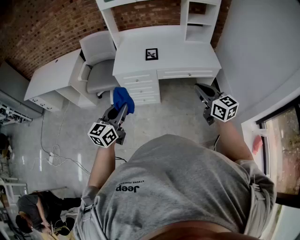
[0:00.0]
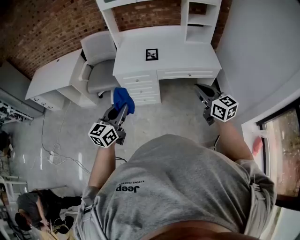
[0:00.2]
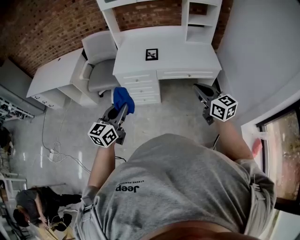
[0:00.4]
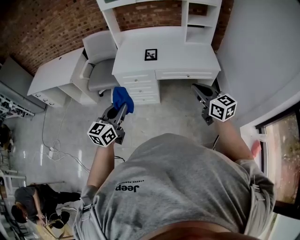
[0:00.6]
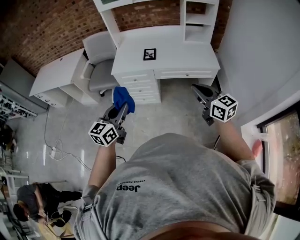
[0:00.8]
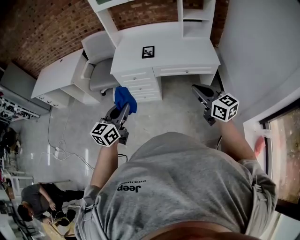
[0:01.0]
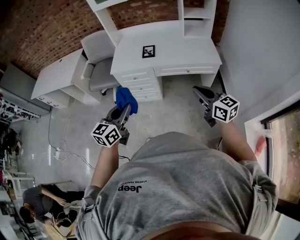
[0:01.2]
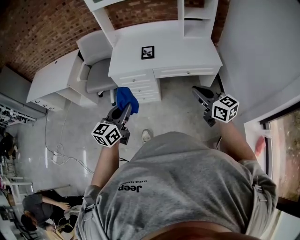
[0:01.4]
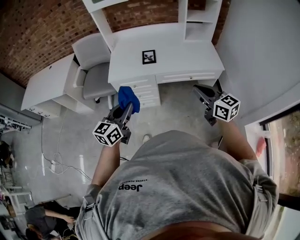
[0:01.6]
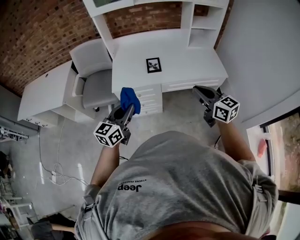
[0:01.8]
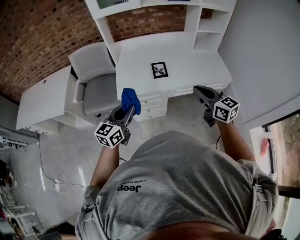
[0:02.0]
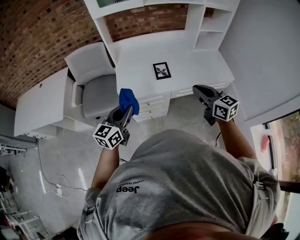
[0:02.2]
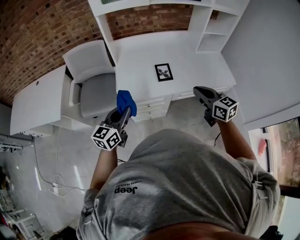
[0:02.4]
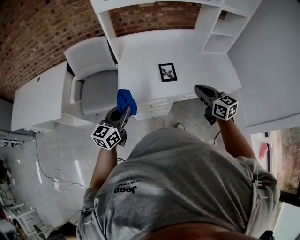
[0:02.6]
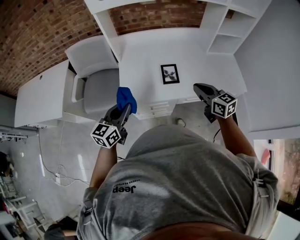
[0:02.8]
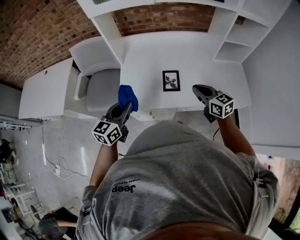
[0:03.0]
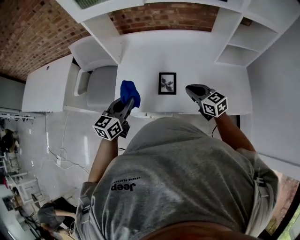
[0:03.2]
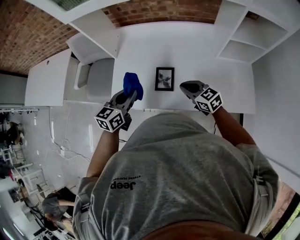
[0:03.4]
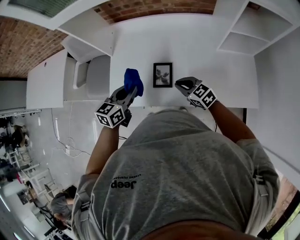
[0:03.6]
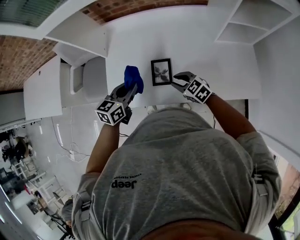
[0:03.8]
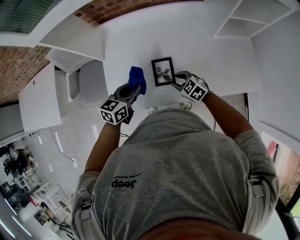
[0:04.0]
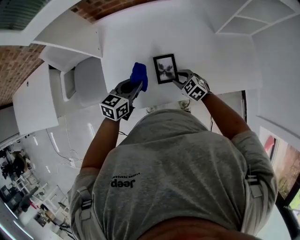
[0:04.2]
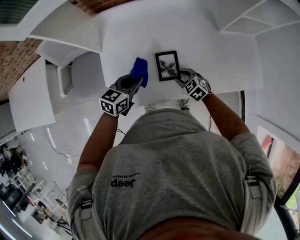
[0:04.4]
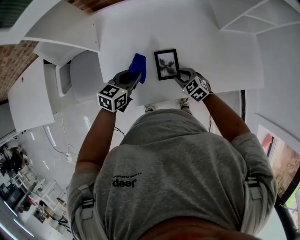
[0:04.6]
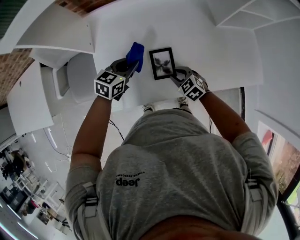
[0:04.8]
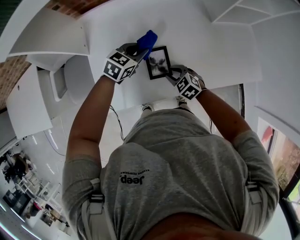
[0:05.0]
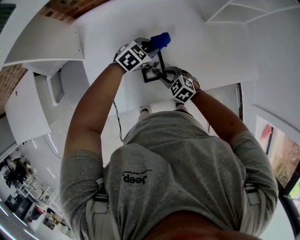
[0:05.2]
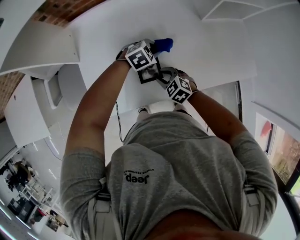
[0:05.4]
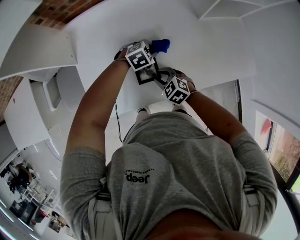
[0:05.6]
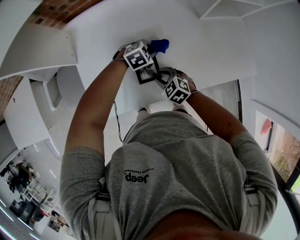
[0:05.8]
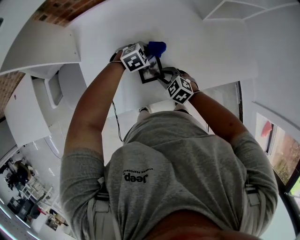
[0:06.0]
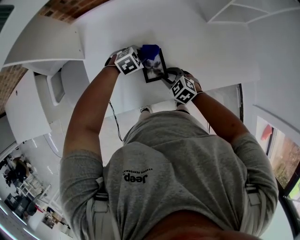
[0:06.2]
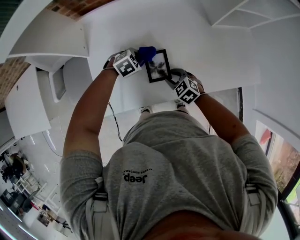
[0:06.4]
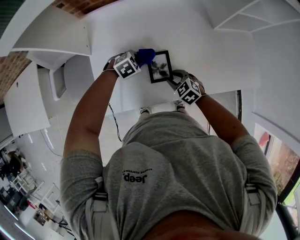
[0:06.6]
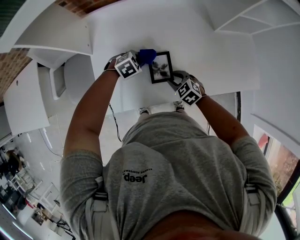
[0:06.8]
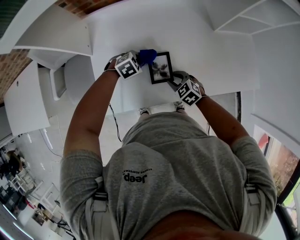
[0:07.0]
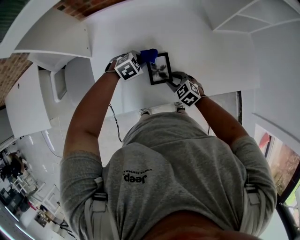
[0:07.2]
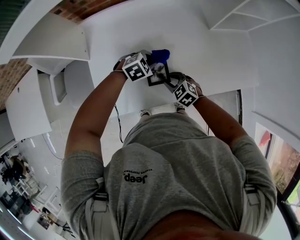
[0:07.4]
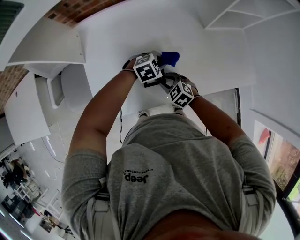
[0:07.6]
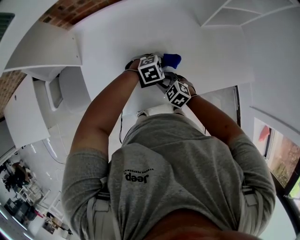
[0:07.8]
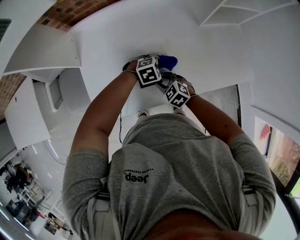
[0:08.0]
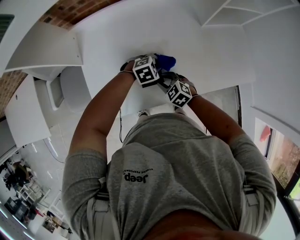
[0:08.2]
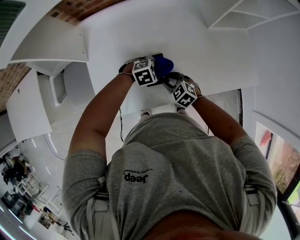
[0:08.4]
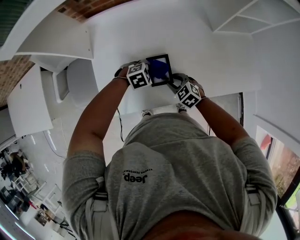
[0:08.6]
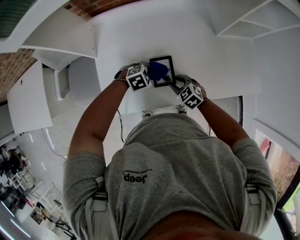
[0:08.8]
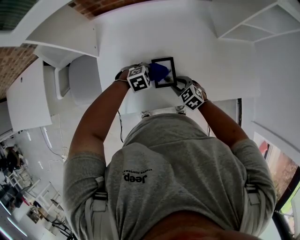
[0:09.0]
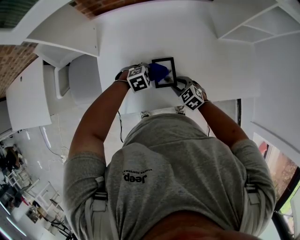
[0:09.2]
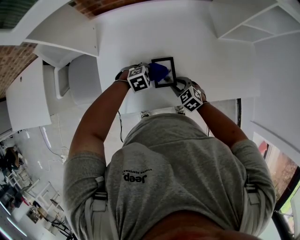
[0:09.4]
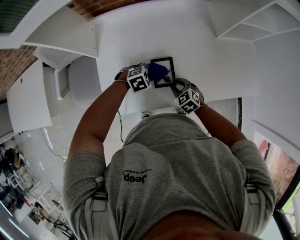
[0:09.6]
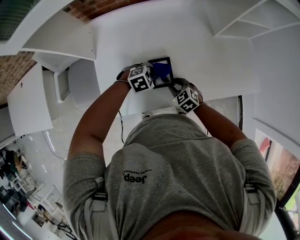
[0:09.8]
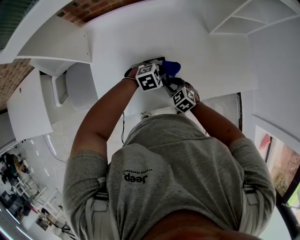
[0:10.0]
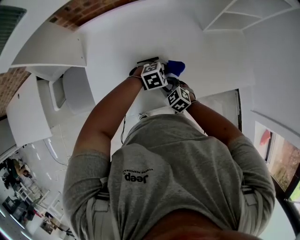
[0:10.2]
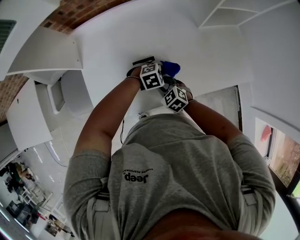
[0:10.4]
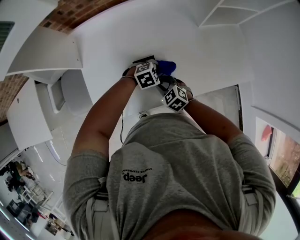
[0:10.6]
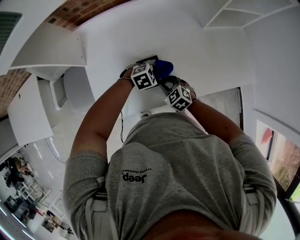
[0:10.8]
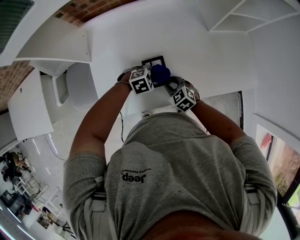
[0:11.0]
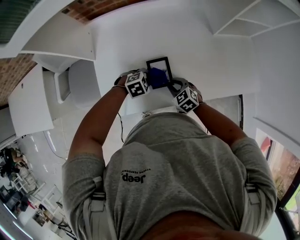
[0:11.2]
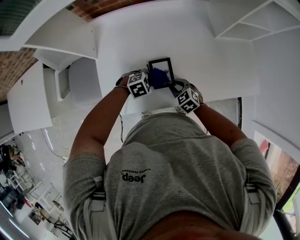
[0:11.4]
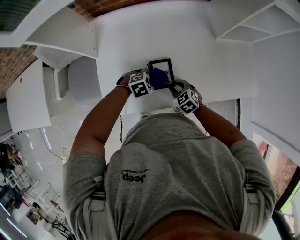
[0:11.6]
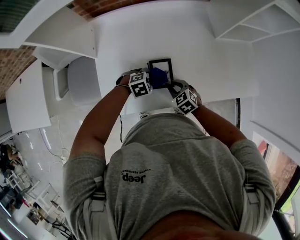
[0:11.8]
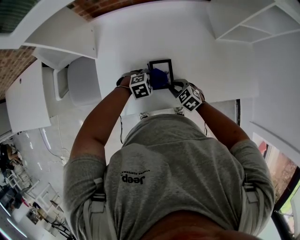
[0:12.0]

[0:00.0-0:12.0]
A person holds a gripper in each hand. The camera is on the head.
0.0 to 1.6 s: Both grippers move forward, approximately 10 cm.
1.6 to 3.0 s: Both grippers move forward, some 35 cm.
3.0 to 4.4 s: The left gripper is displaced forward, downward and to the right by some 25 cm, and swivels about 30 degrees. The right gripper travels downward by about 25 cm, tips its fingers downward by approximately 30 degrees, and opens.
4.4 to 6.0 s: The left gripper ends up some 20 cm from where it was, and tilts its fingers about 30 degrees downward.
7.6 to 9.0 s: The left gripper shifts by some 10 cm.
9.0 to 10.4 s: The left gripper ends up approximately 15 cm from where it was.
10.4 to 12.0 s: The left gripper ends up some 15 cm from where it was.

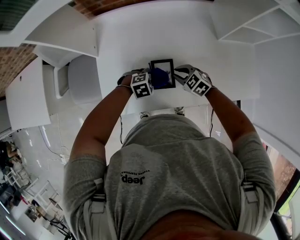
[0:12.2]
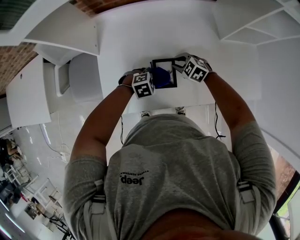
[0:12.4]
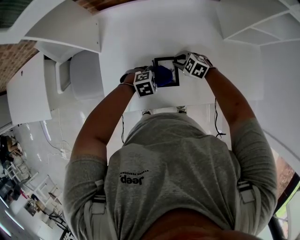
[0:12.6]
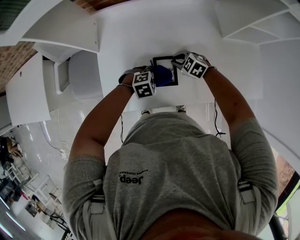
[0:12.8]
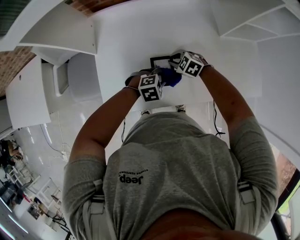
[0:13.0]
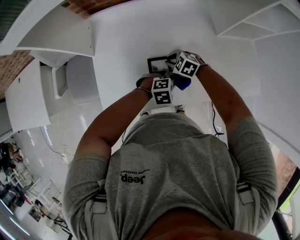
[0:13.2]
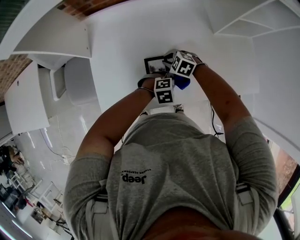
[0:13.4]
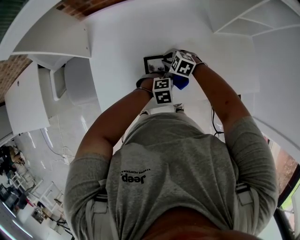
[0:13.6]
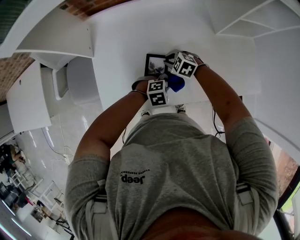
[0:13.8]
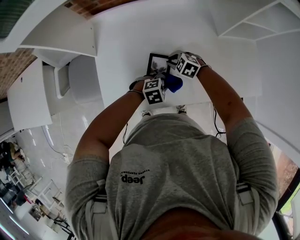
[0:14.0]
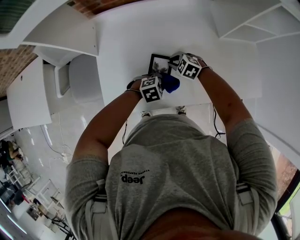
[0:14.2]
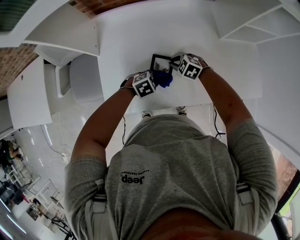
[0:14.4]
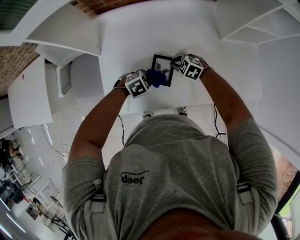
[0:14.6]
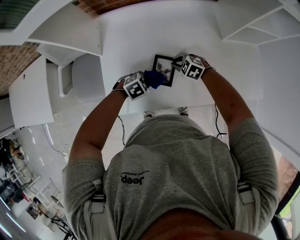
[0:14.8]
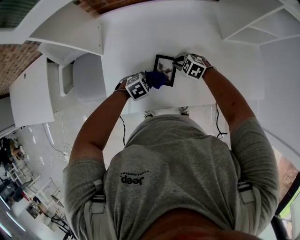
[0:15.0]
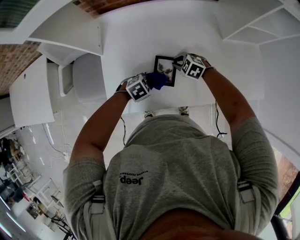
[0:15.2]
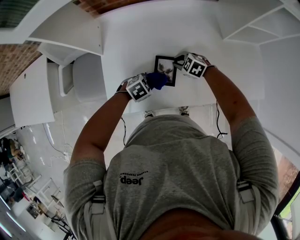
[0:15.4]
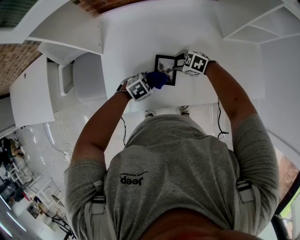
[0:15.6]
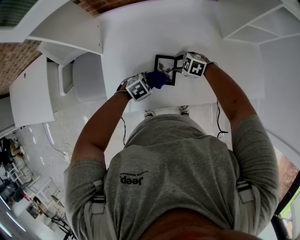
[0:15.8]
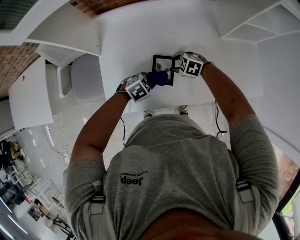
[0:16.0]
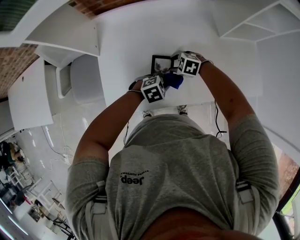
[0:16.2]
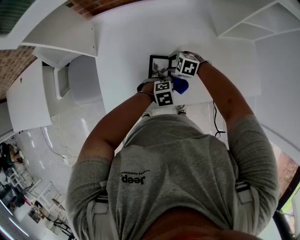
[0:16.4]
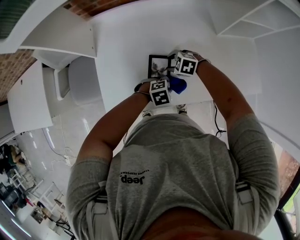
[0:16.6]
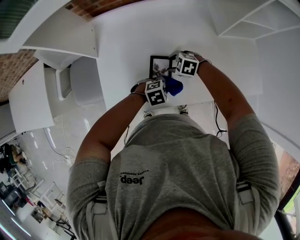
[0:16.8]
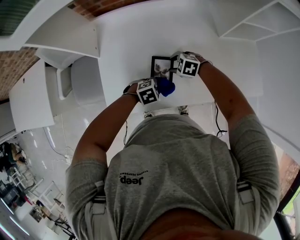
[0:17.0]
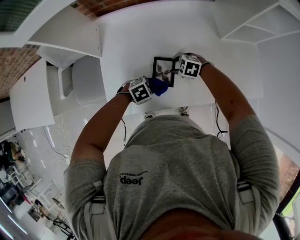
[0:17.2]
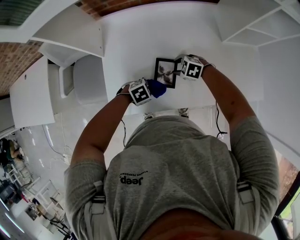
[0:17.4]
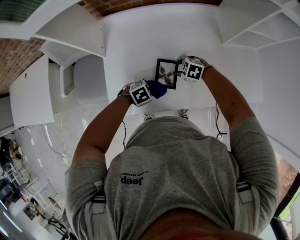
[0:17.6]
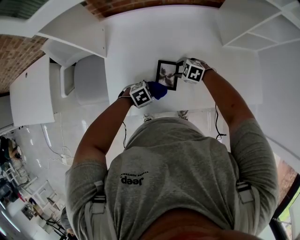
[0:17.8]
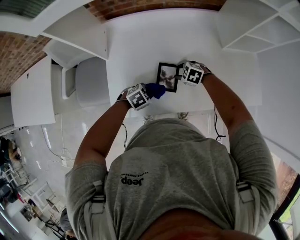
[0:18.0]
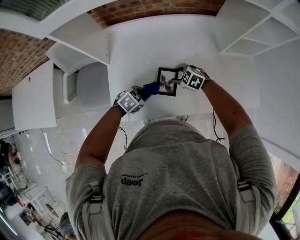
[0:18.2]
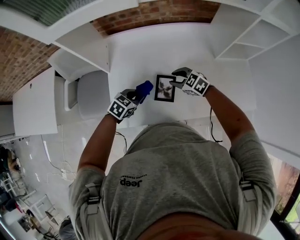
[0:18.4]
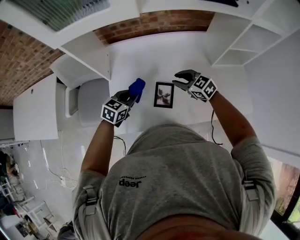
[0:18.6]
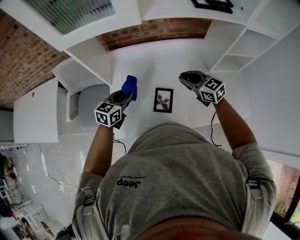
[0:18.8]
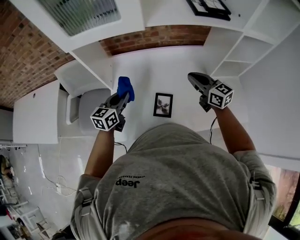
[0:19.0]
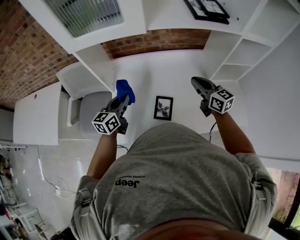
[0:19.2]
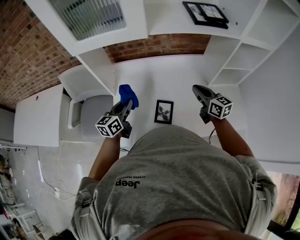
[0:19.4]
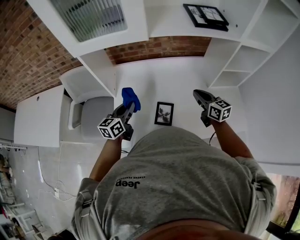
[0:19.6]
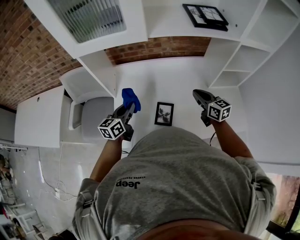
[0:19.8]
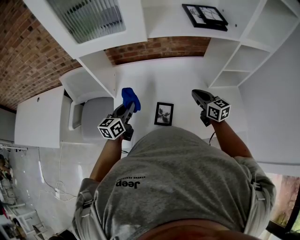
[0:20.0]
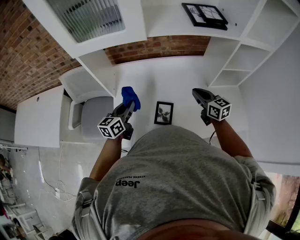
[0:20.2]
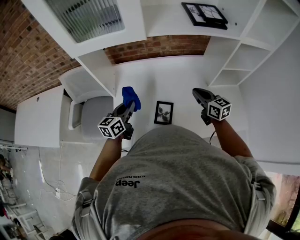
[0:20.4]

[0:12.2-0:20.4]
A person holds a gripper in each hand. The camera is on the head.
12.2 to 13.8 s: The left gripper moves approximately 10 cm; the right gripper moves about 5 cm.
13.8 to 15.4 s: The left gripper changes place by some 10 cm, and rotates some 20 degrees.
15.4 to 17.2 s: The right gripper opens.
17.2 to 18.8 s: The two grippers go about 25 cm upward. The right gripper tips its fingers upward by approximately 40 degrees, and closes up; the left gripper tips its fingers upward by some 40 degrees.
18.8 to 20.4 s: The left gripper changes its angle by about 20 degrees. Meanwhile the right gripper heads to the right, covering roughly 5 cm, and changes its angle by approximately 20 degrees.

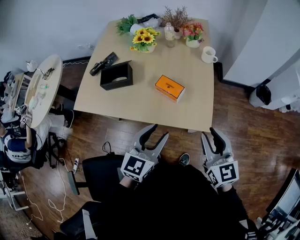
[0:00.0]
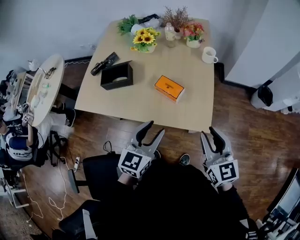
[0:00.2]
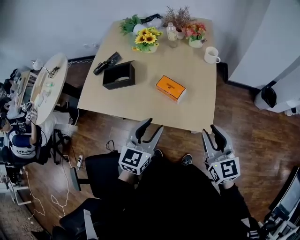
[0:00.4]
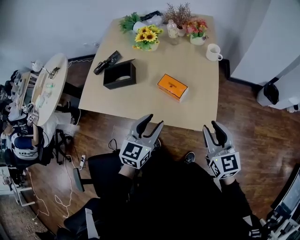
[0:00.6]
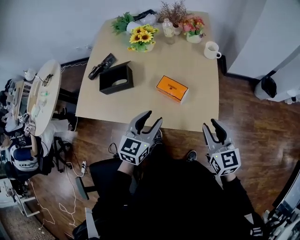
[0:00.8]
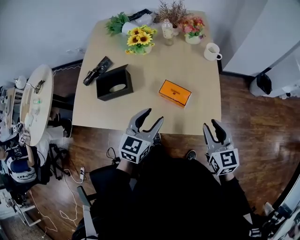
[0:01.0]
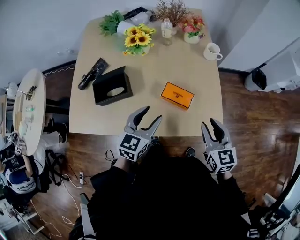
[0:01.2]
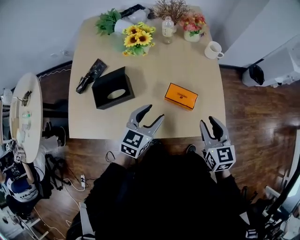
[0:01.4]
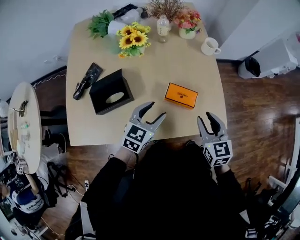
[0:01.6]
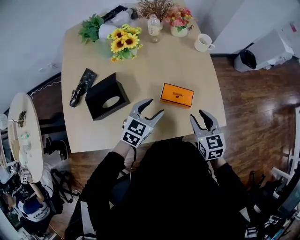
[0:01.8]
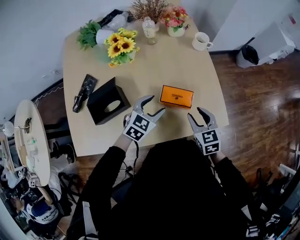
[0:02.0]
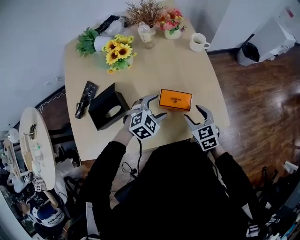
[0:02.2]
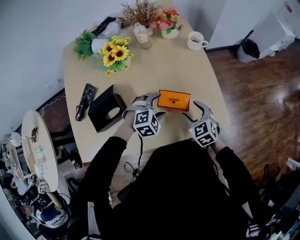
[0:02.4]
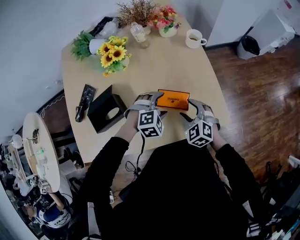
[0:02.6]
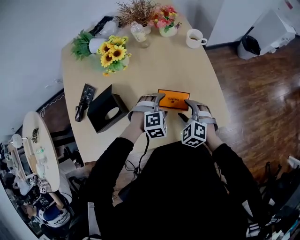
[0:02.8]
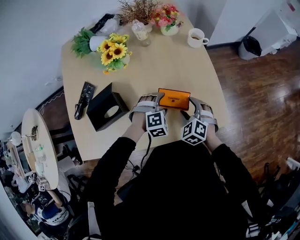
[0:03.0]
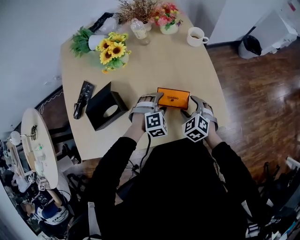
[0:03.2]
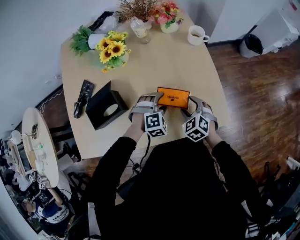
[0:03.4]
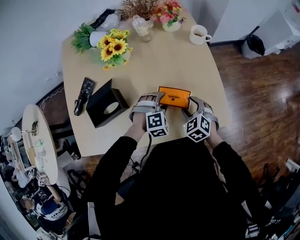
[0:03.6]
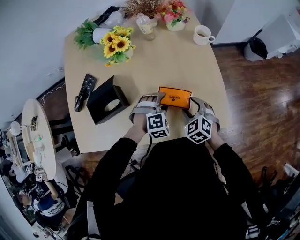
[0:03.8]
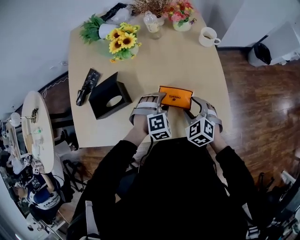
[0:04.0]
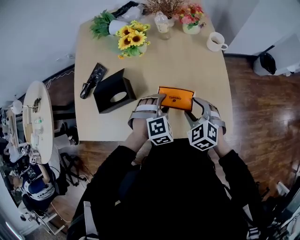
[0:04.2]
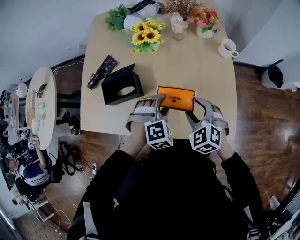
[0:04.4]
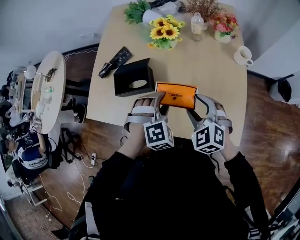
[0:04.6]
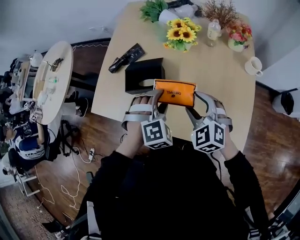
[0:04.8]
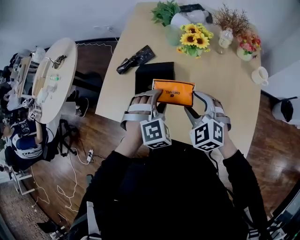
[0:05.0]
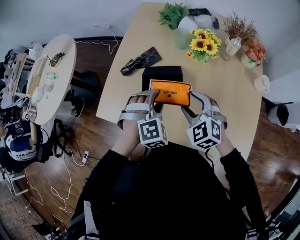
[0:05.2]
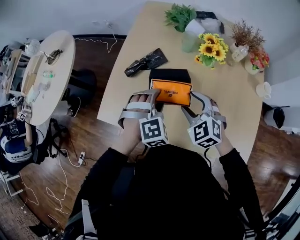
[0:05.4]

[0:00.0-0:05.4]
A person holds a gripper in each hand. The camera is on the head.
0.0 to 1.4 s: The grippers both shift forward, to the left and downward by some 20 cm. The right gripper turns by roughly 20 degrees.
1.4 to 2.8 s: The right gripper is displaced downward and to the left by approximately 15 cm, changes its angle by approximately 50 degrees, and opens up. The left gripper goes roughly 15 cm downward, forward and to the right, rotates around the line of its fingers by approximately 60 degrees, clockwise from behind, and opens.
2.8 to 4.0 s: There are only small adjustments of the grippers.
4.0 to 5.4 s: The left gripper moves roughly 35 cm, and swivels some 30 degrees, while the right gripper changes place by approximately 35 cm, and swivels roughly 30 degrees.
